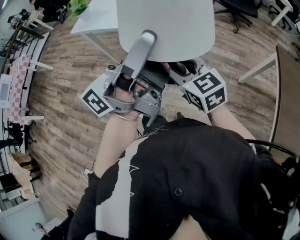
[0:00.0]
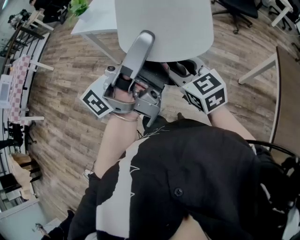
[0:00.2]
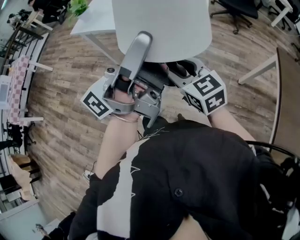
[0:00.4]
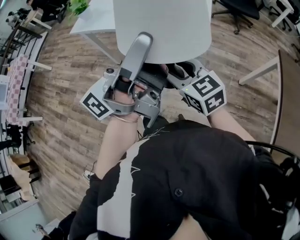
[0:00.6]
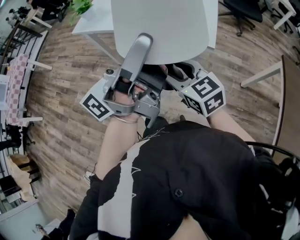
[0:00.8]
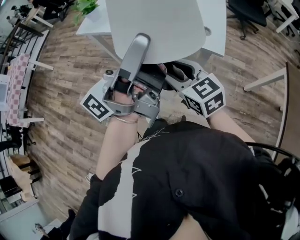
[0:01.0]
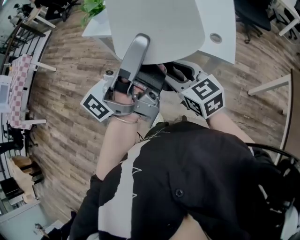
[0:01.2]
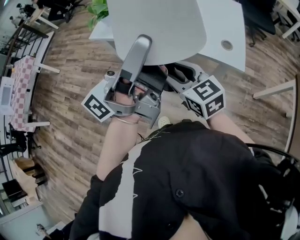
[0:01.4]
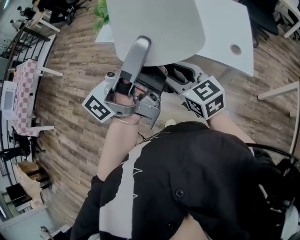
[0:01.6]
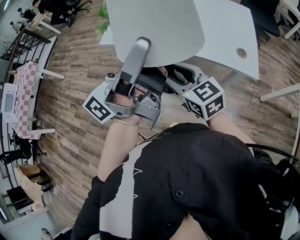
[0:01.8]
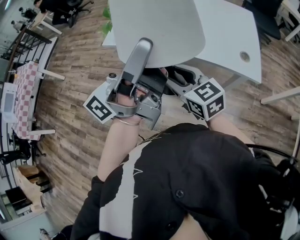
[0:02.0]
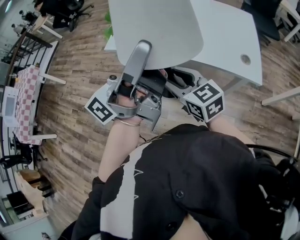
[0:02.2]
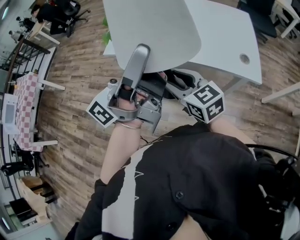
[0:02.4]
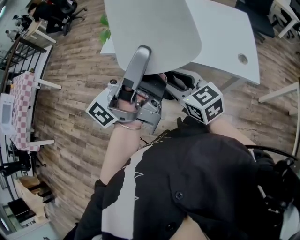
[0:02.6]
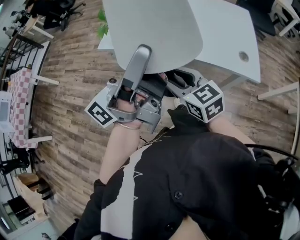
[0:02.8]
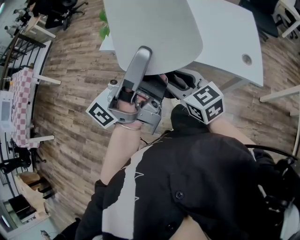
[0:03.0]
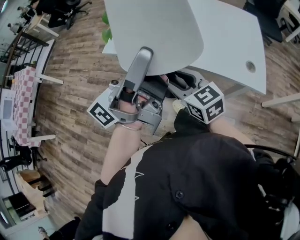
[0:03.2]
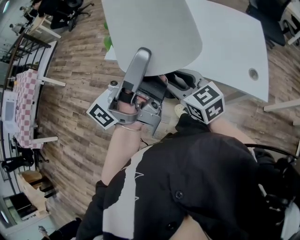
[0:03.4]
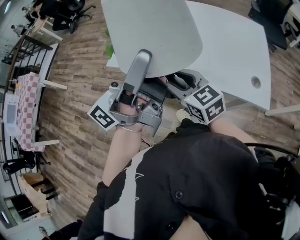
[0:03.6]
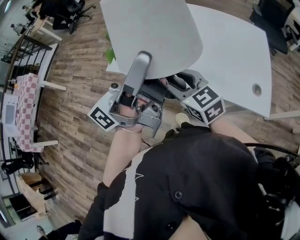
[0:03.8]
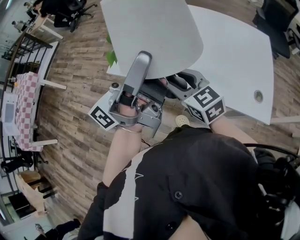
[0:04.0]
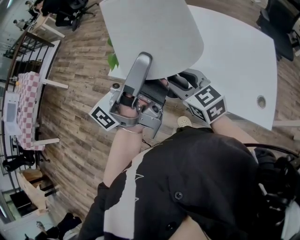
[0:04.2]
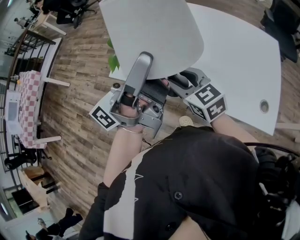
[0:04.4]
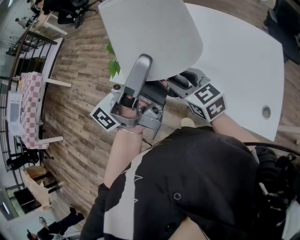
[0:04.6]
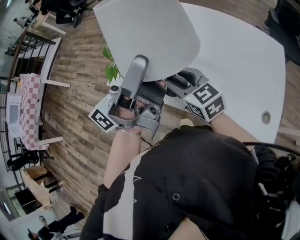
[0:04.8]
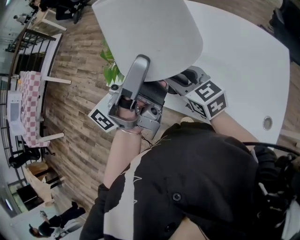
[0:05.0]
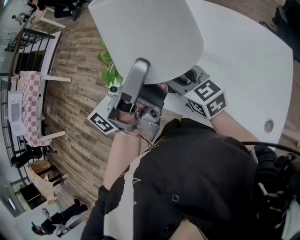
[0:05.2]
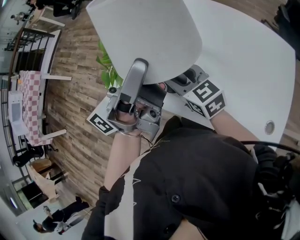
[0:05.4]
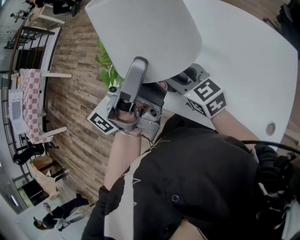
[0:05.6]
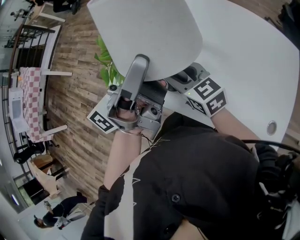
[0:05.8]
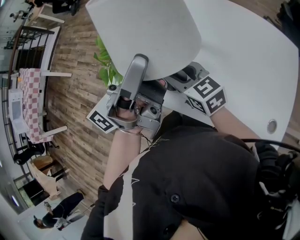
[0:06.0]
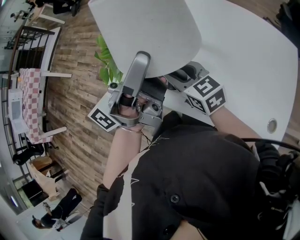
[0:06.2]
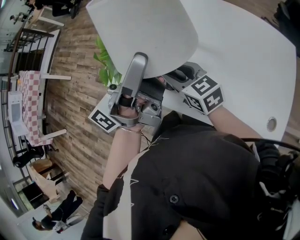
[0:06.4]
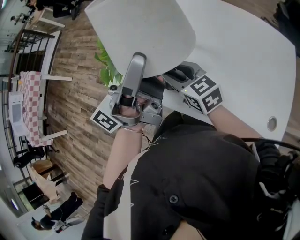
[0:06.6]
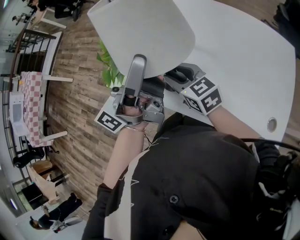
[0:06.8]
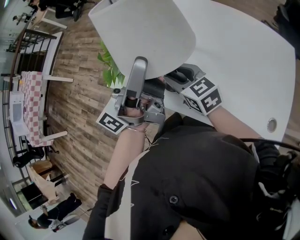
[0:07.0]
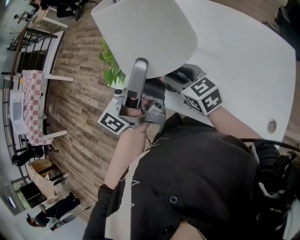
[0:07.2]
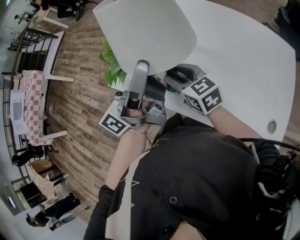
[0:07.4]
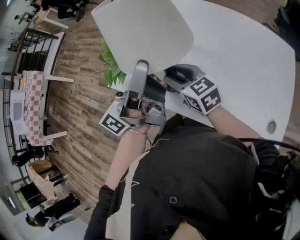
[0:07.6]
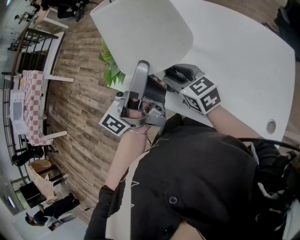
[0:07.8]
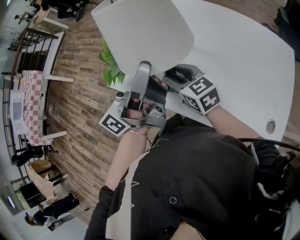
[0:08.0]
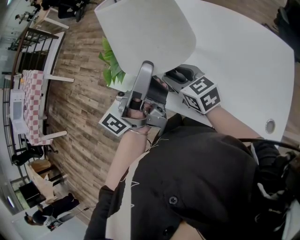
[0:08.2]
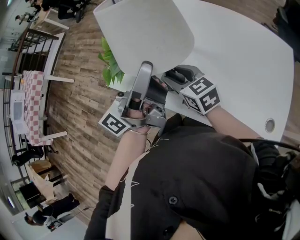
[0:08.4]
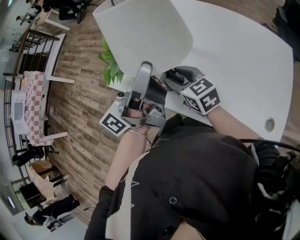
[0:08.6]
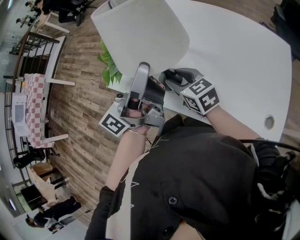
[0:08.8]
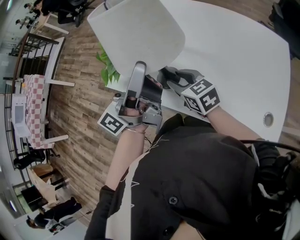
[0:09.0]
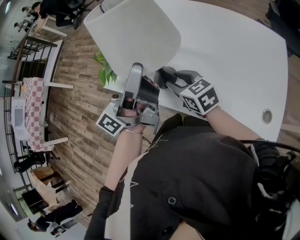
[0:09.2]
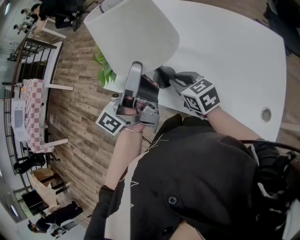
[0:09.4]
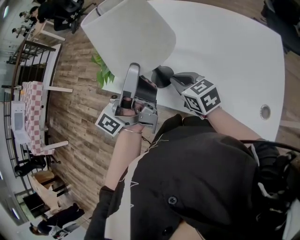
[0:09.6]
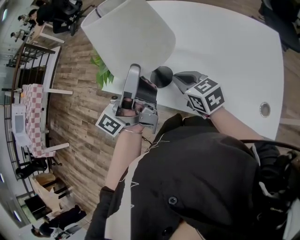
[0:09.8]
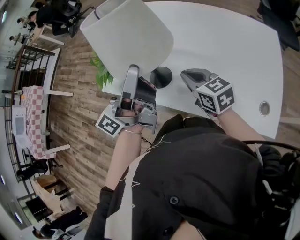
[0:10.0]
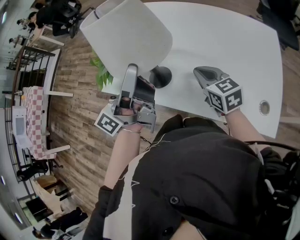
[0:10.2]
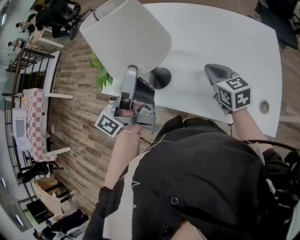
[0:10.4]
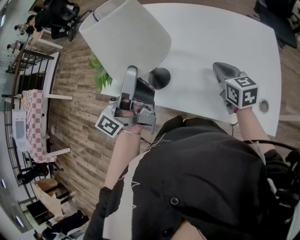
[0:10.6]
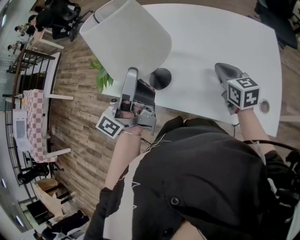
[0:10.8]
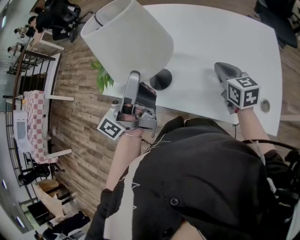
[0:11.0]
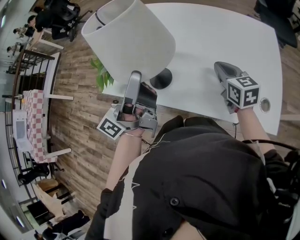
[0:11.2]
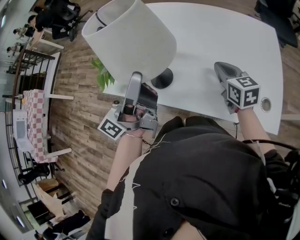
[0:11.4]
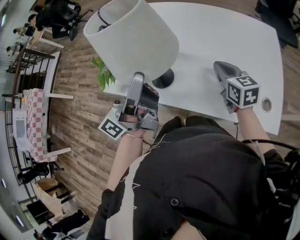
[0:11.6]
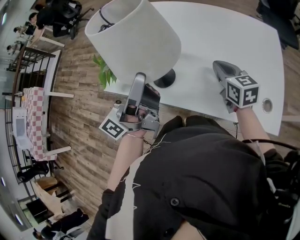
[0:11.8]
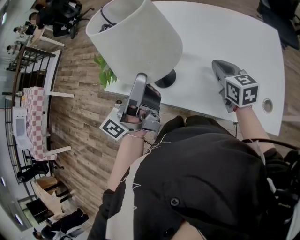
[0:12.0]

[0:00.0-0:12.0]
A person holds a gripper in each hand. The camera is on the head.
0:00.0 to 0:01.6: The two grippers go roughly 30 cm to the left and forward.
0:01.6 to 0:03.0: The two grippers go about 10 cm to the left and forward.
0:03.0 to 0:04.4: The grippers both shift forward by some 20 cm.
0:04.4 to 0:06.0: The right gripper shifts roughly 10 cm forward and downward. Meanwhile the left gripper is displaced forward by roughly 10 cm.
0:06.0 to 0:09.0: The grippers move only a little.
0:09.0 to 0:10.4: The right gripper moves to the right, approximately 20 cm, turns by some 20 degrees, and closes up.
0:10.4 to 0:12.0: There are only small adjustments of the grippers.

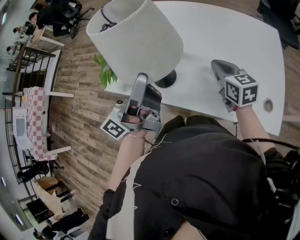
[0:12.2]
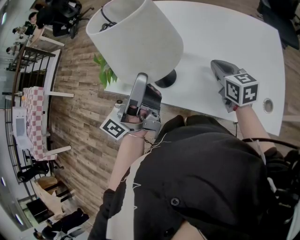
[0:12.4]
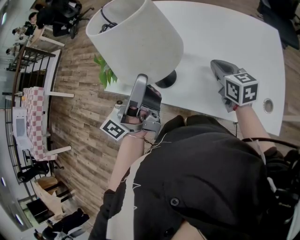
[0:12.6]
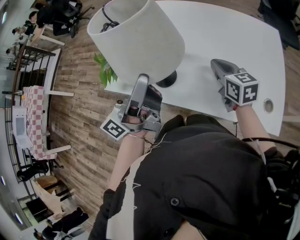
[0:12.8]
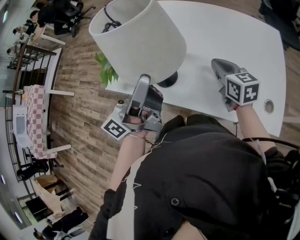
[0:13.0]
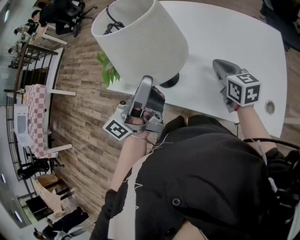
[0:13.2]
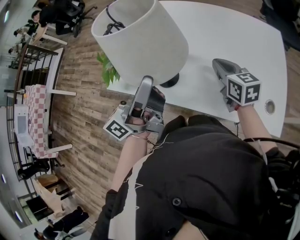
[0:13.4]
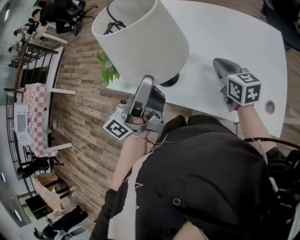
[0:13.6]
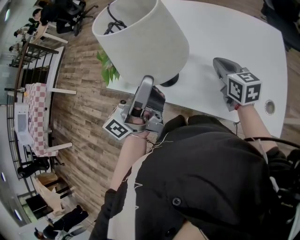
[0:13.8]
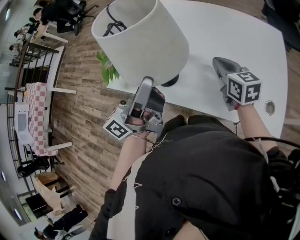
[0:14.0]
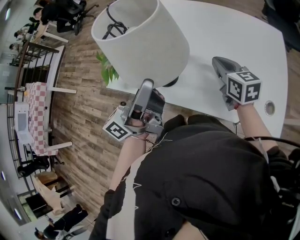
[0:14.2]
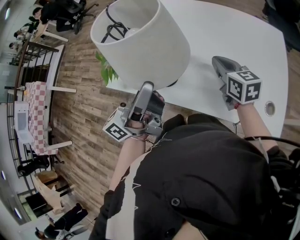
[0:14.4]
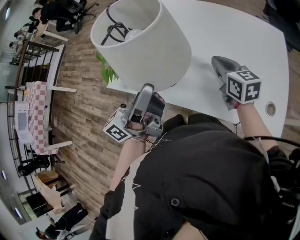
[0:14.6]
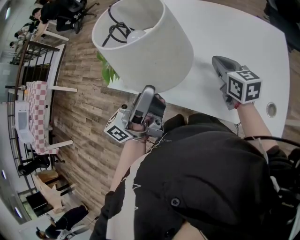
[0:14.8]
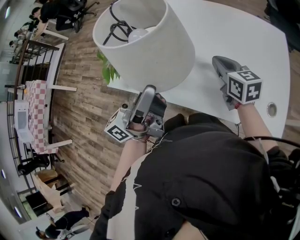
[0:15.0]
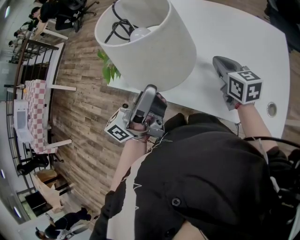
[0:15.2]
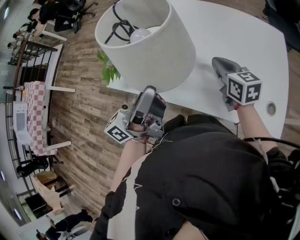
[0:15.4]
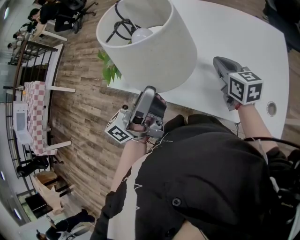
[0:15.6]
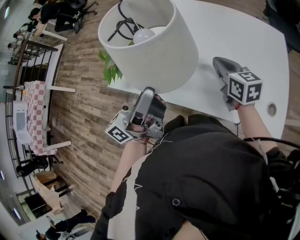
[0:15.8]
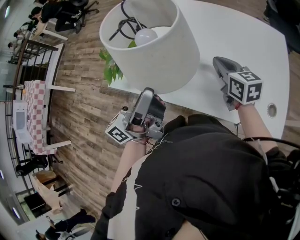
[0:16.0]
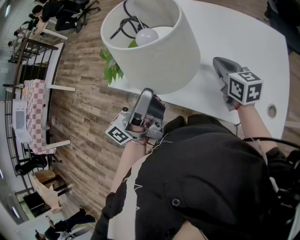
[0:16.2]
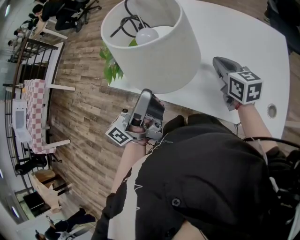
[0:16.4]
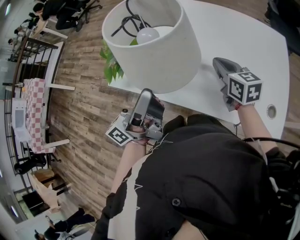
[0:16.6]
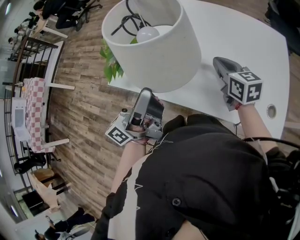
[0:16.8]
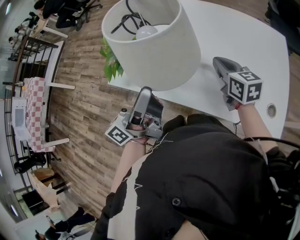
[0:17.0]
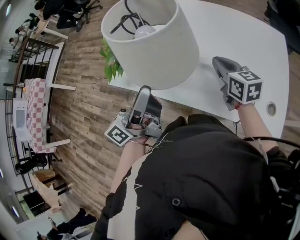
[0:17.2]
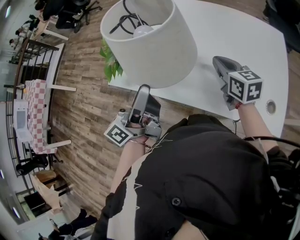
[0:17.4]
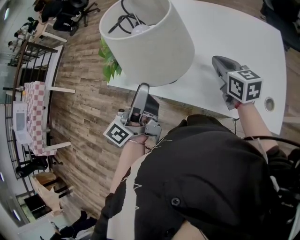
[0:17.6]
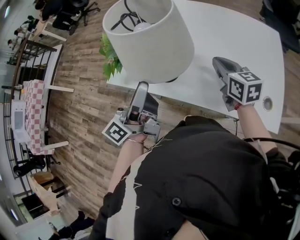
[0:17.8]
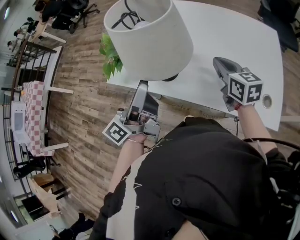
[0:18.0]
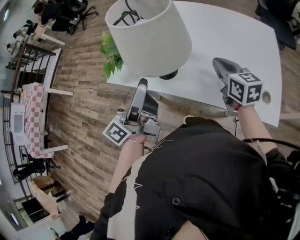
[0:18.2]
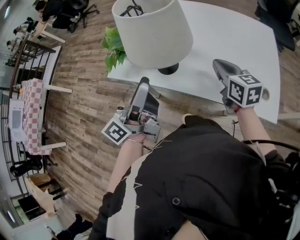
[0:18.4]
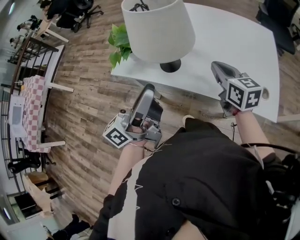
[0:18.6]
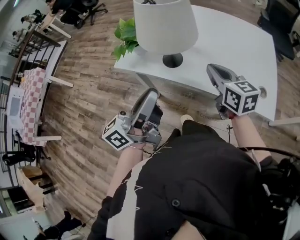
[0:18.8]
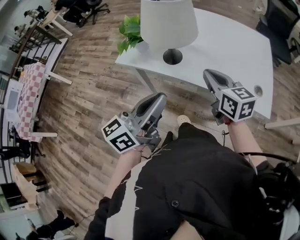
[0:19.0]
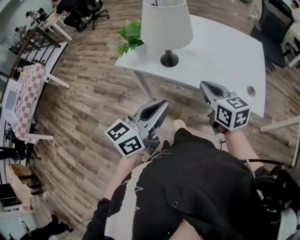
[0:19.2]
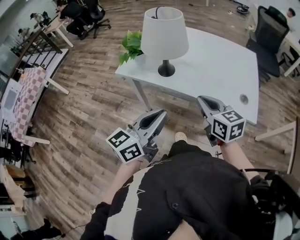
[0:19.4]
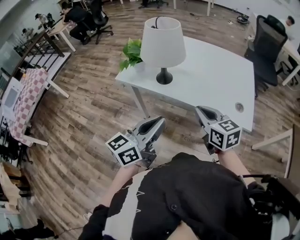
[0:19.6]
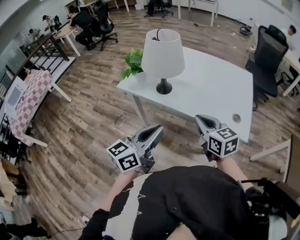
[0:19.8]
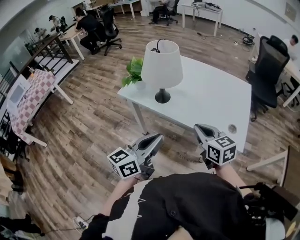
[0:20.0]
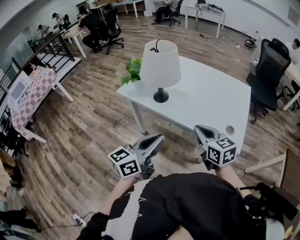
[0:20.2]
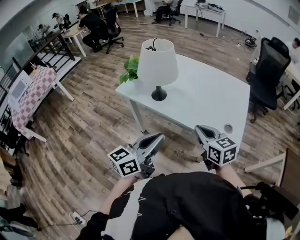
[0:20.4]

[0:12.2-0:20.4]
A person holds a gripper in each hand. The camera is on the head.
0:12.2 to 0:13.8: Both grippers stay about where they are.
0:13.8 to 0:15.4: There are only small adjustments of the grippers.
0:15.4 to 0:17.2: The left gripper opens.
0:17.2 to 0:18.8: The right gripper goes about 15 cm backward and upward, while the left gripper shifts some 15 cm backward, and closes its fingers.
0:18.8 to 0:20.4: The right gripper is displaced backward and to the right by roughly 20 cm; the left gripper goes approximately 20 cm to the right and backward, and rotates about 30 degrees.

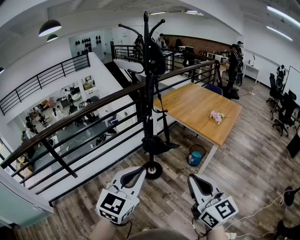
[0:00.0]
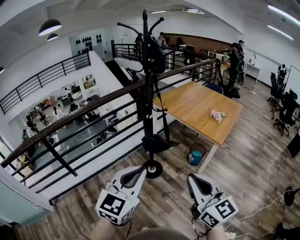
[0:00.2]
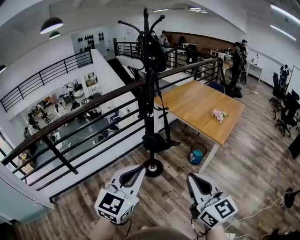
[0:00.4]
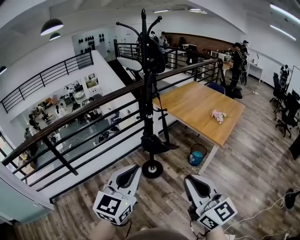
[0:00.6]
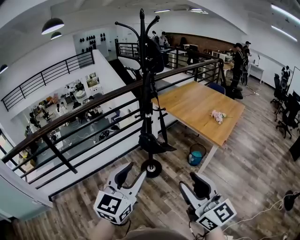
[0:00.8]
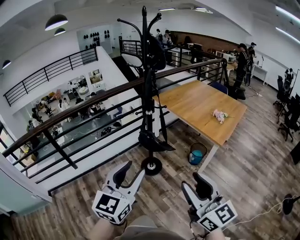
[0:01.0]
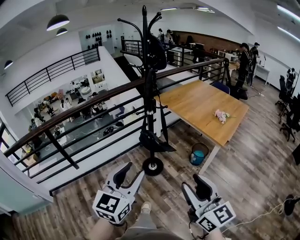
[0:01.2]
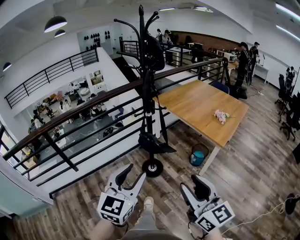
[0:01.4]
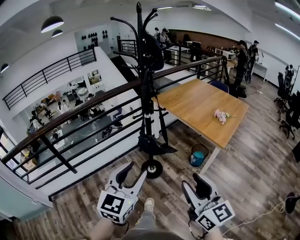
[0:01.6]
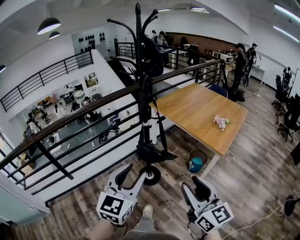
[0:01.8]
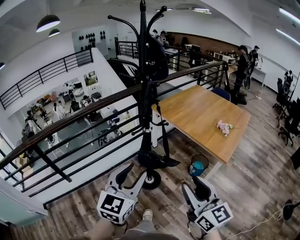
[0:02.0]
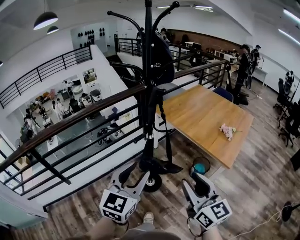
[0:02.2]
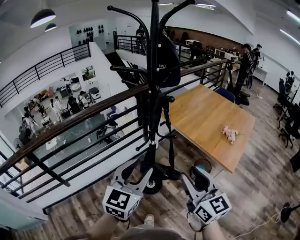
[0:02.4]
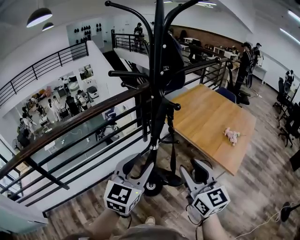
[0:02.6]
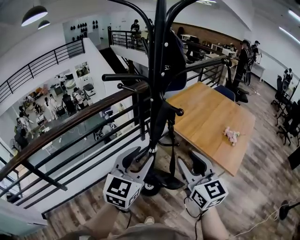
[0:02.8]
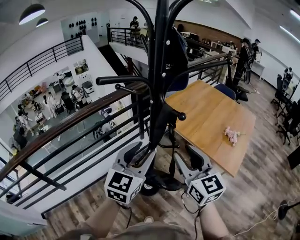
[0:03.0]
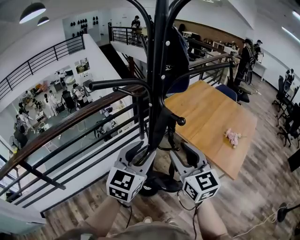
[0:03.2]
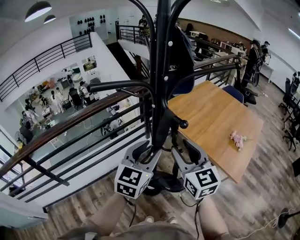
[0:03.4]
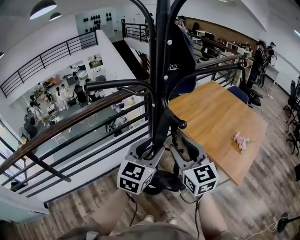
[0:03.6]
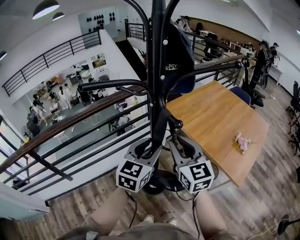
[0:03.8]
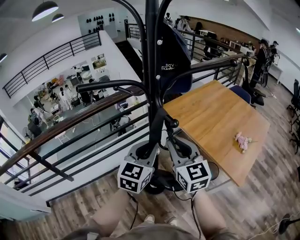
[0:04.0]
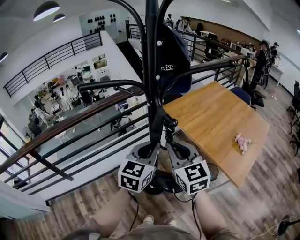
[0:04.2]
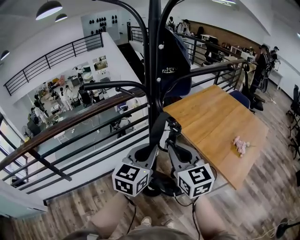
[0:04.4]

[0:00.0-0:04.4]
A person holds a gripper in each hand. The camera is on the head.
0:00.0 to 0:01.4: The left gripper opens up, while the right gripper moves approximately 5 cm, and opens.
0:01.4 to 0:03.0: The pair of grippers is taken forward, approximately 40 cm.
0:03.0 to 0:04.4: The right gripper ends up some 5 cm from where it was, and closes up. Meanwhile the left gripper changes place by approximately 5 cm, and closes its fingers.
